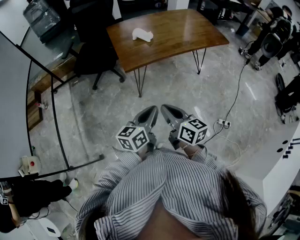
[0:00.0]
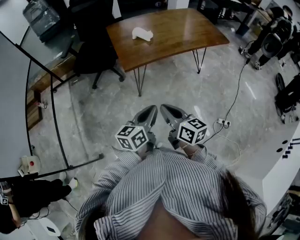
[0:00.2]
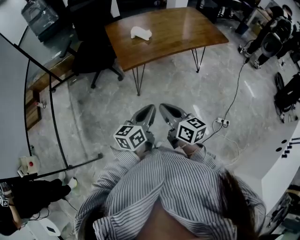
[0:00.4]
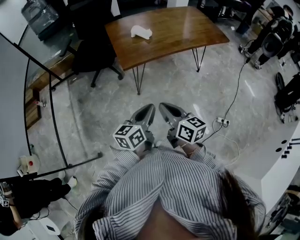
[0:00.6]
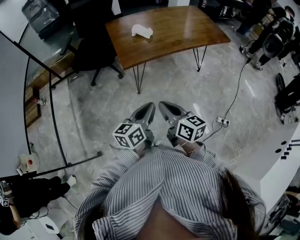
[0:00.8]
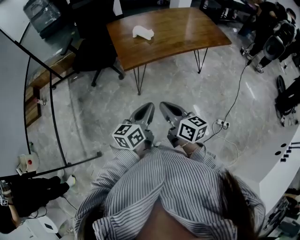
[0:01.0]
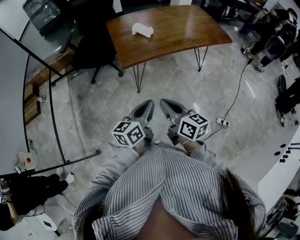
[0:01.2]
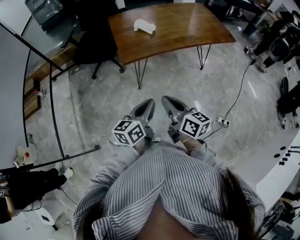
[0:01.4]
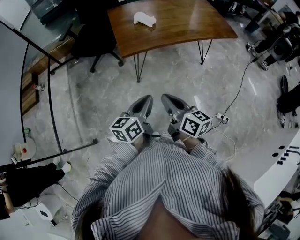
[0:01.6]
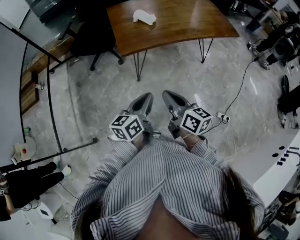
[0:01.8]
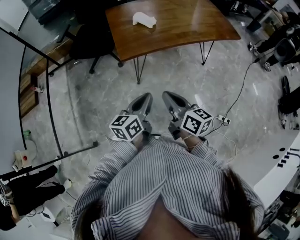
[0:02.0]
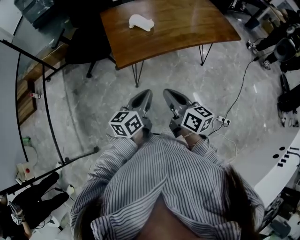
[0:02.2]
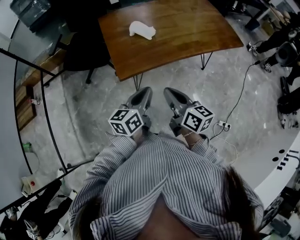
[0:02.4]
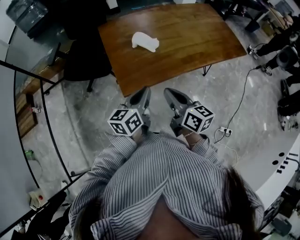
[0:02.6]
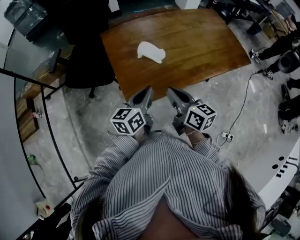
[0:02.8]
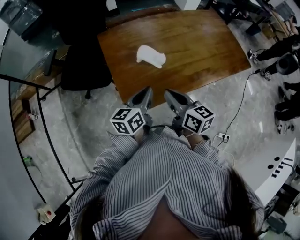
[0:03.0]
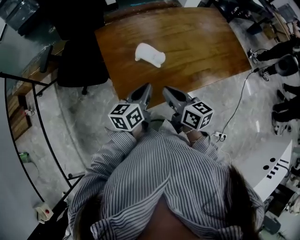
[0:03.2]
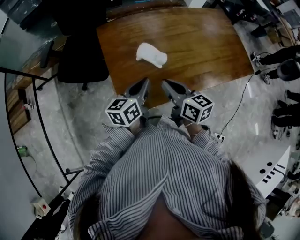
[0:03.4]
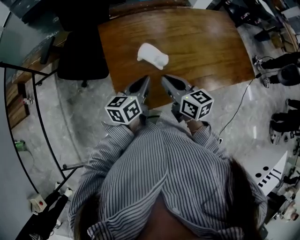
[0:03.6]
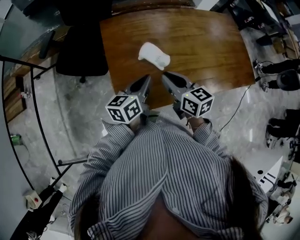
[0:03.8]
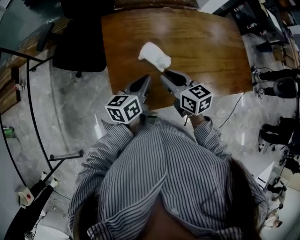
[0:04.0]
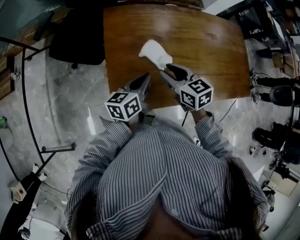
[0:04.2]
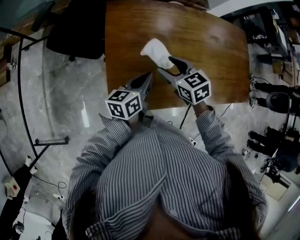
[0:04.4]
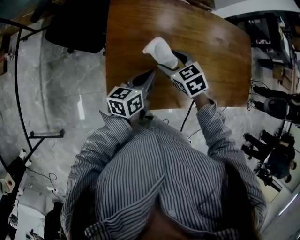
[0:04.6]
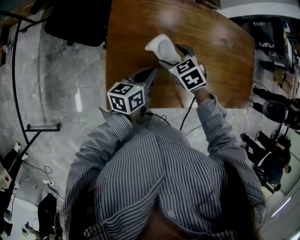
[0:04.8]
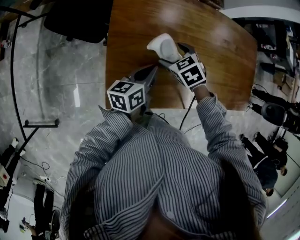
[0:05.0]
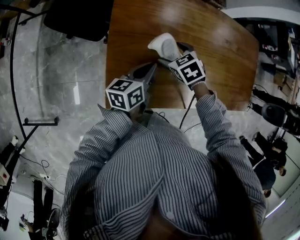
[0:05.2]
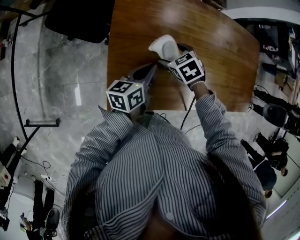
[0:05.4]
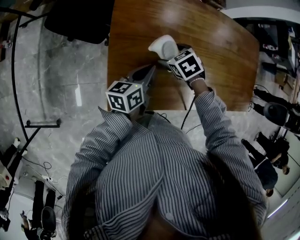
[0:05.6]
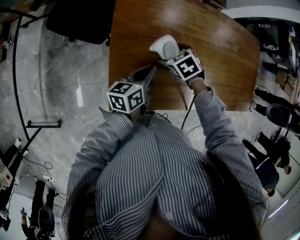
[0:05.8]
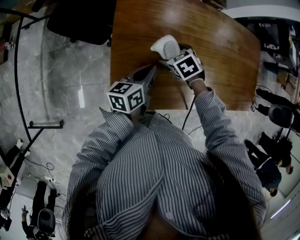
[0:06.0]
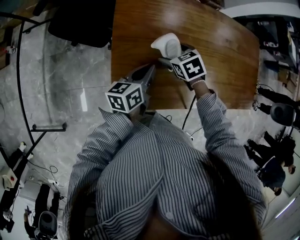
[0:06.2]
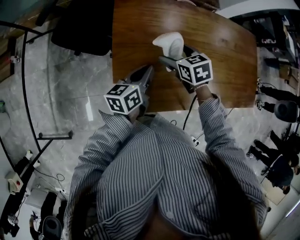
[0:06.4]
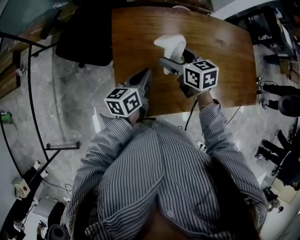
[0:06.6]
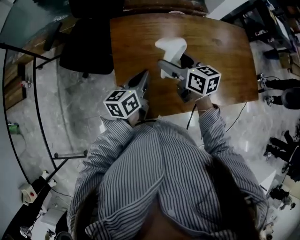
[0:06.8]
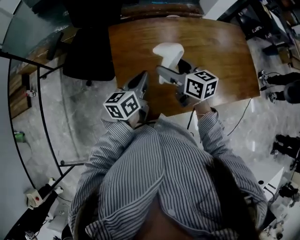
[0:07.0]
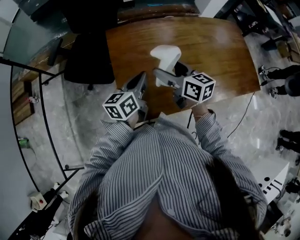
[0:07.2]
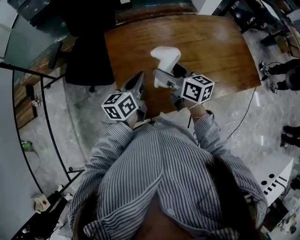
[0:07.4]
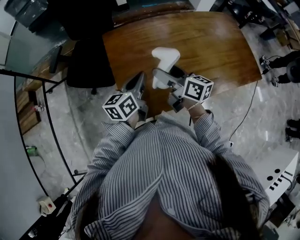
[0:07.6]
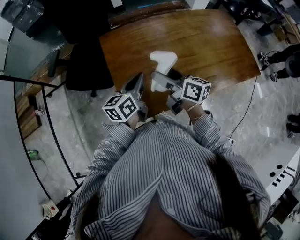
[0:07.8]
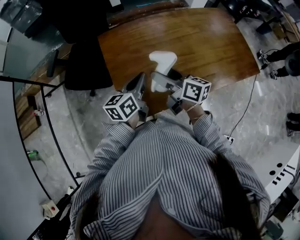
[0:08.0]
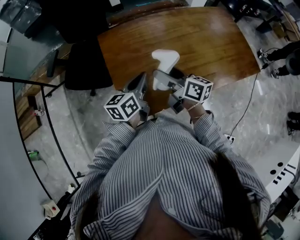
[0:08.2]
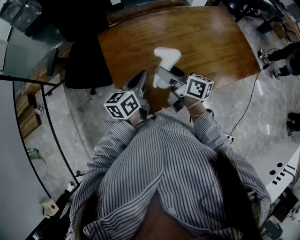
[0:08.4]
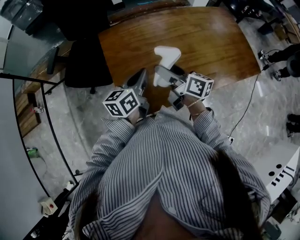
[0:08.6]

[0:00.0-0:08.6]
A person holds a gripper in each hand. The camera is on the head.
0:00.0 to 0:01.4: There are only small adjustments of the grippers.
0:01.4 to 0:02.8: The two grippers go roughly 35 cm forward.
0:02.8 to 0:04.4: Both grippers travel together forward and downward, approximately 20 cm. The right gripper tips its fingers downward by some 30 degrees, and opens its fingers.
0:04.4 to 0:05.8: The left gripper ends up roughly 5 cm from where it was. The right gripper goes approximately 15 cm downward, swivels approximately 30 degrees, and opens its fingers.
0:05.8 to 0:07.2: The right gripper moves upward, about 20 cm, and angles its fingers upward, by some 60 degrees. The left gripper shifts approximately 10 cm upward.
0:07.2 to 0:08.6: The right gripper changes its angle by approximately 20 degrees.

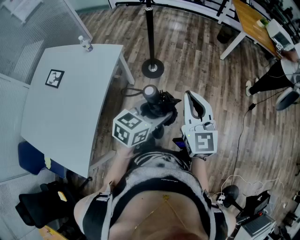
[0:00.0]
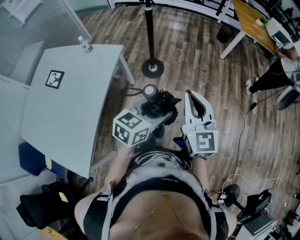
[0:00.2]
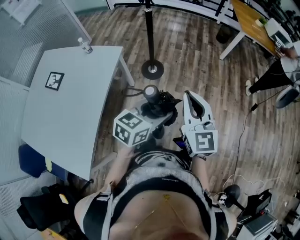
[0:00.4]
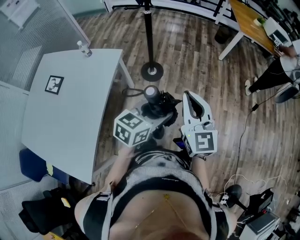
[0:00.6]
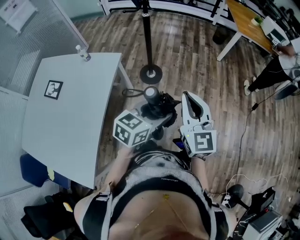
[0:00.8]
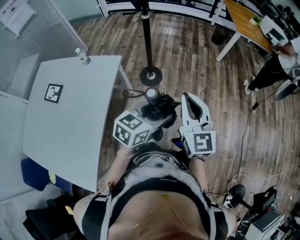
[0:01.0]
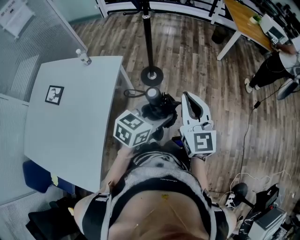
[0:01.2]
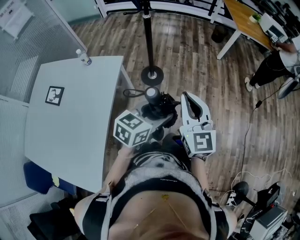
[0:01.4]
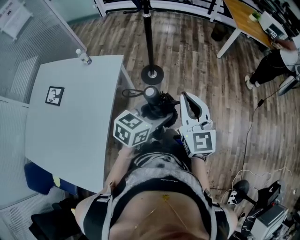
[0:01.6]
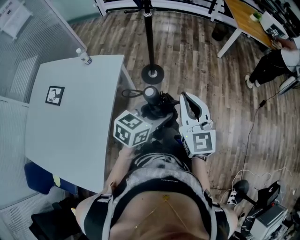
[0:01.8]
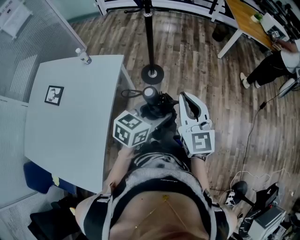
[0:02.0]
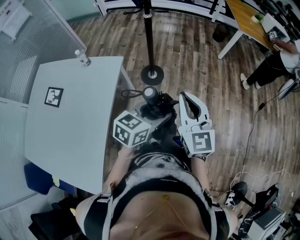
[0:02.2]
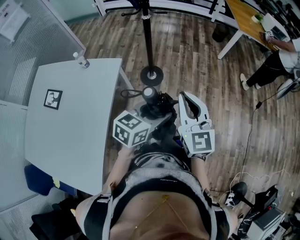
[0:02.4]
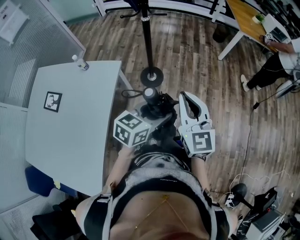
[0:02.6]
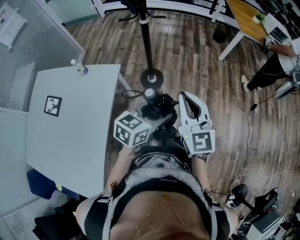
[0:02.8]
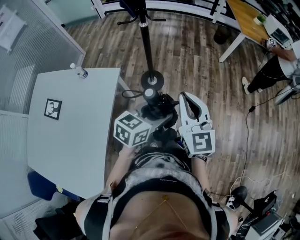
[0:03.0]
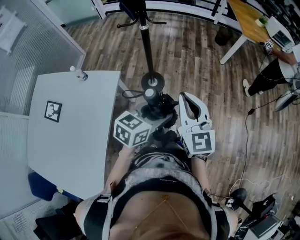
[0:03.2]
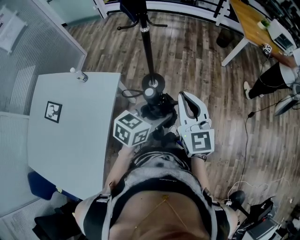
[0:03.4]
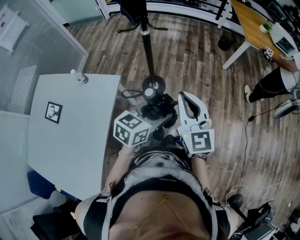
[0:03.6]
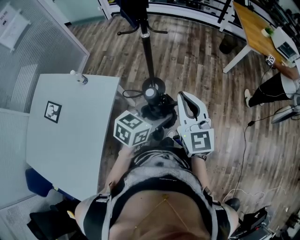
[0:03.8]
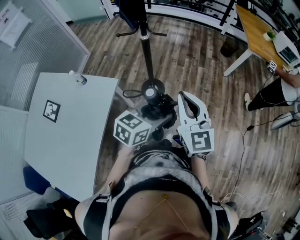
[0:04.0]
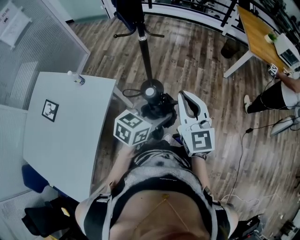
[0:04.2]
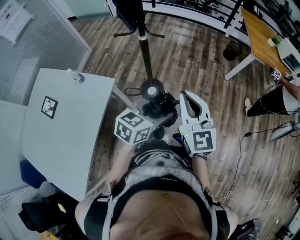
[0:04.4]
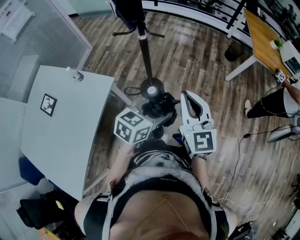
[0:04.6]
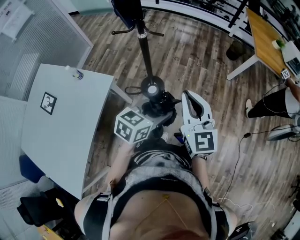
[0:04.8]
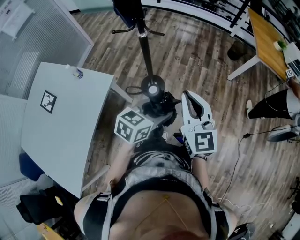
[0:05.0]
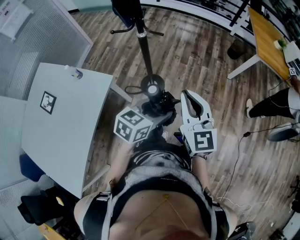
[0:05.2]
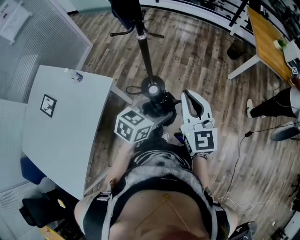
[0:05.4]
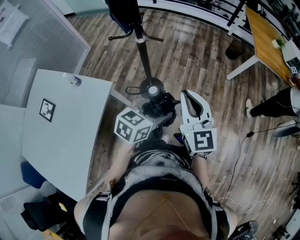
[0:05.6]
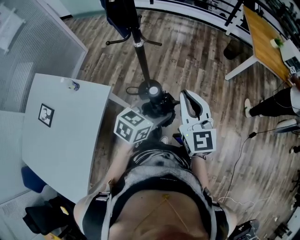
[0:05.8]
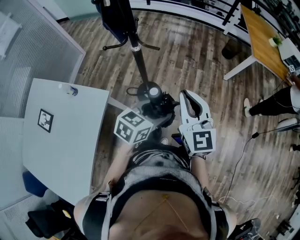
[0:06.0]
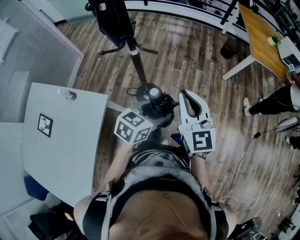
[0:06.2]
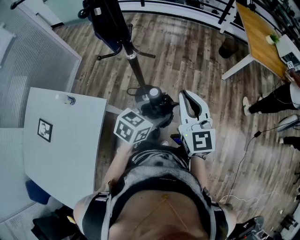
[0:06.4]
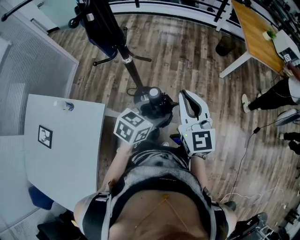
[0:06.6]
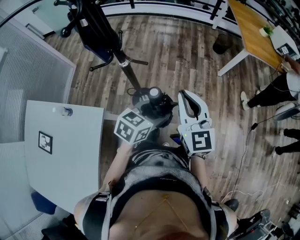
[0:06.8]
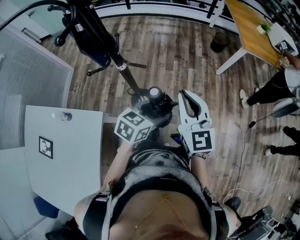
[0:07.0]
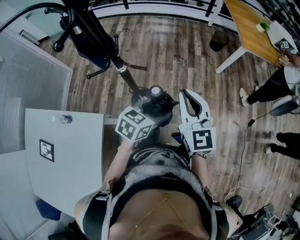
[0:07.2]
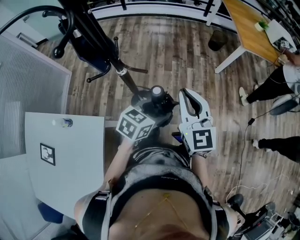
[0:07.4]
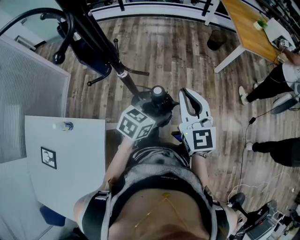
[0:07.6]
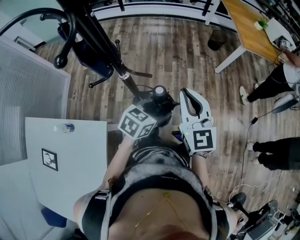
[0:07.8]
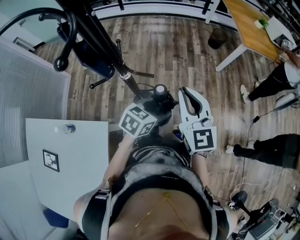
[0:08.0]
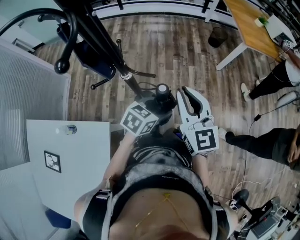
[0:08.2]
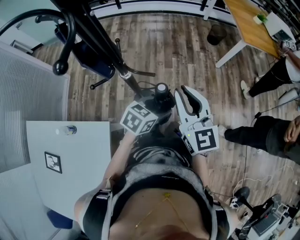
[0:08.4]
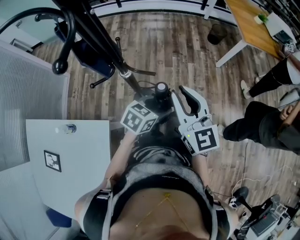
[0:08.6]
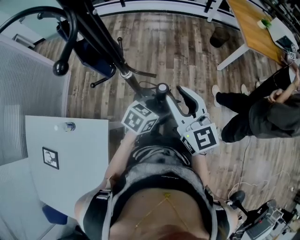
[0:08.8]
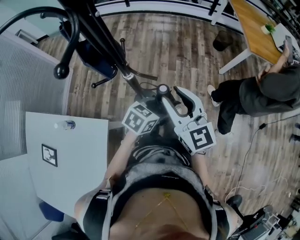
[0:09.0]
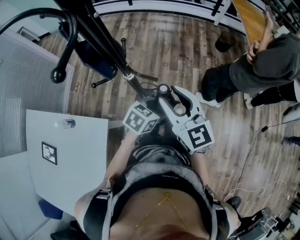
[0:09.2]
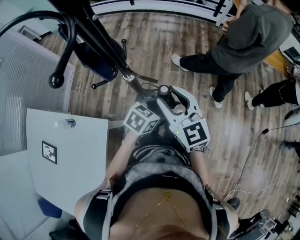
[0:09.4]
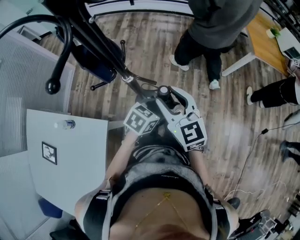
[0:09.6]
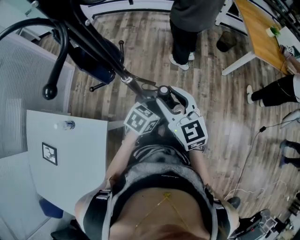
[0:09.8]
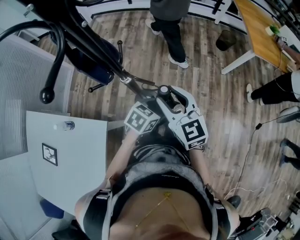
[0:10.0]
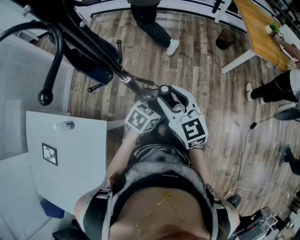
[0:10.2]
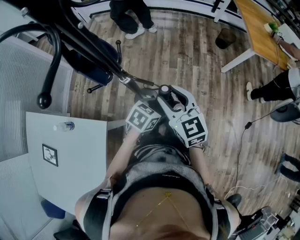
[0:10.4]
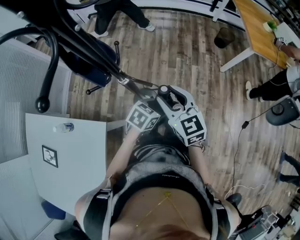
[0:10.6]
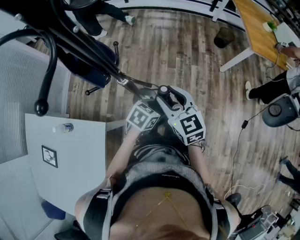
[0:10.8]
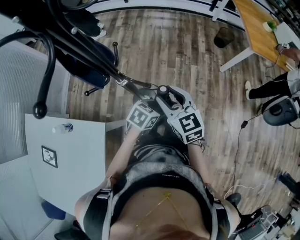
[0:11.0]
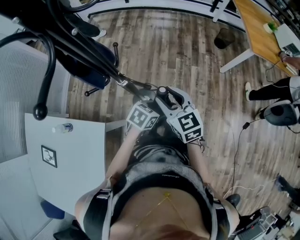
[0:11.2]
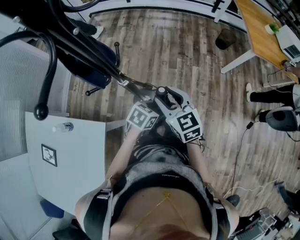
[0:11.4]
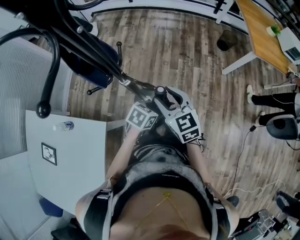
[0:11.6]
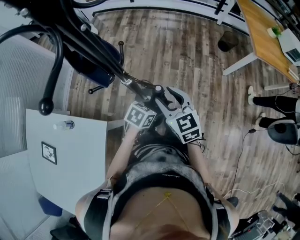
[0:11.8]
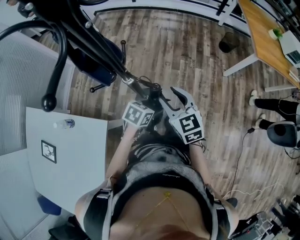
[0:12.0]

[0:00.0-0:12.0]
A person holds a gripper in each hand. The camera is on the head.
0:00.0 to 0:01.6: The grippers both shift to the left by approximately 5 cm.
0:01.6 to 0:03.0: The grippers both shift forward by about 10 cm.
0:03.0 to 0:04.4: The grippers both shift forward by some 15 cm.
0:04.4 to 0:06.0: The grippers both shift forward by some 10 cm.
0:06.0 to 0:07.6: Both grippers travel together forward, roughly 10 cm.
0:07.6 to 0:09.0: The left gripper ends up roughly 5 cm from where it was, while the right gripper moves to the left, approximately 5 cm, and opens up.
0:09.0 to 0:10.4: The left gripper changes place by some 5 cm. The right gripper shifts about 5 cm downward.
0:10.4 to 0:12.0: The left gripper moves some 5 cm.

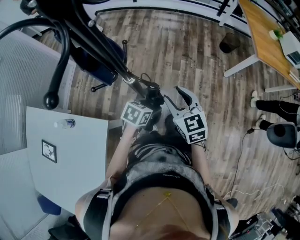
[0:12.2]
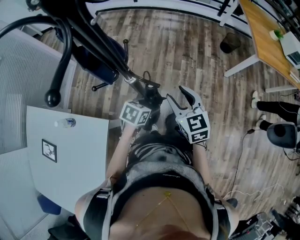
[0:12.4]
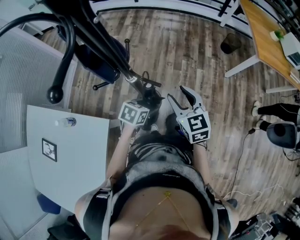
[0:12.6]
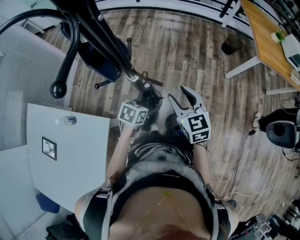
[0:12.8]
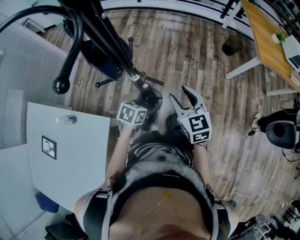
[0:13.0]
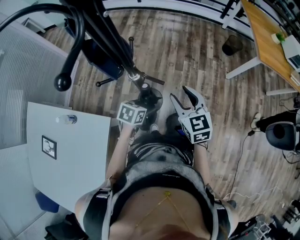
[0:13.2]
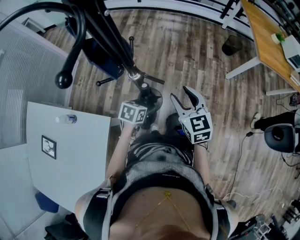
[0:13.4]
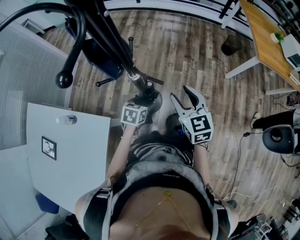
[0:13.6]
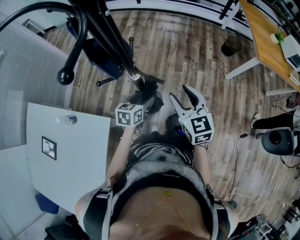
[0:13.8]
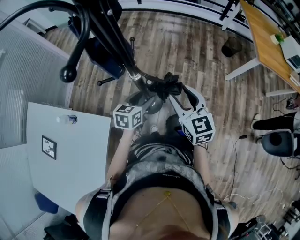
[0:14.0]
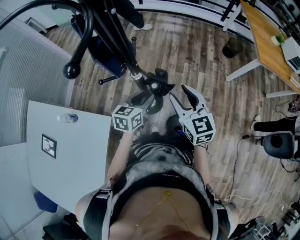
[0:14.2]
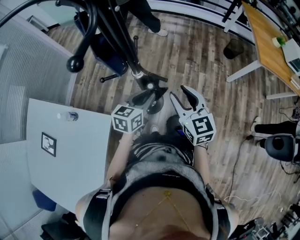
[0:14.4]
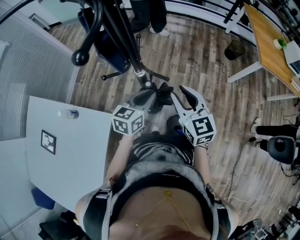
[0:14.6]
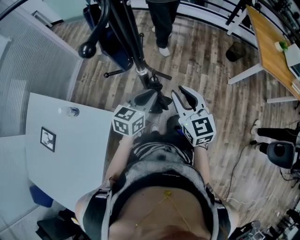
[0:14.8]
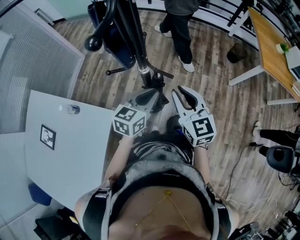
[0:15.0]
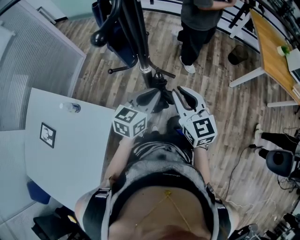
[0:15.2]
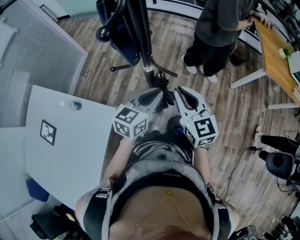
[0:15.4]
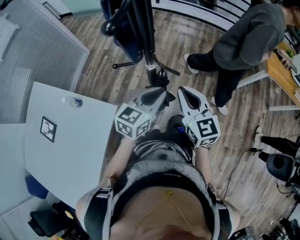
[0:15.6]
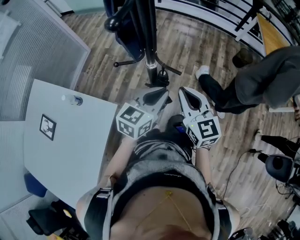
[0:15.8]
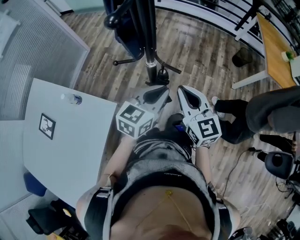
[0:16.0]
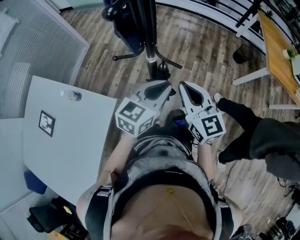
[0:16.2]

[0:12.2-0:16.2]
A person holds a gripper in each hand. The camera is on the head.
0:12.2 to 0:13.6: The left gripper moves to the left, about 5 cm.
0:13.6 to 0:14.8: The right gripper ends up approximately 5 cm from where it was, and closes up. Meanwhile the left gripper shifts some 15 cm upward, swivels roughly 30 degrees, and closes up.
0:14.8 to 0:16.2: The right gripper closes its fingers, while the left gripper goes some 5 cm upward.
